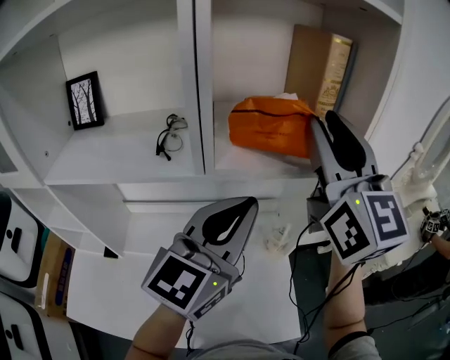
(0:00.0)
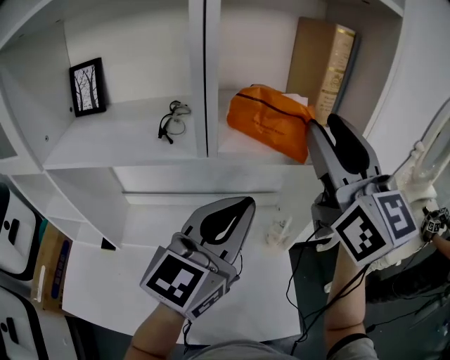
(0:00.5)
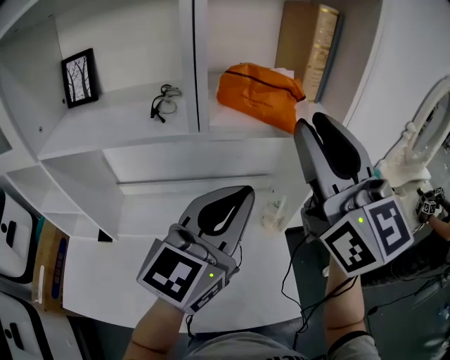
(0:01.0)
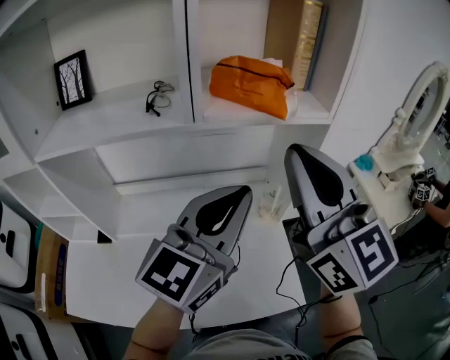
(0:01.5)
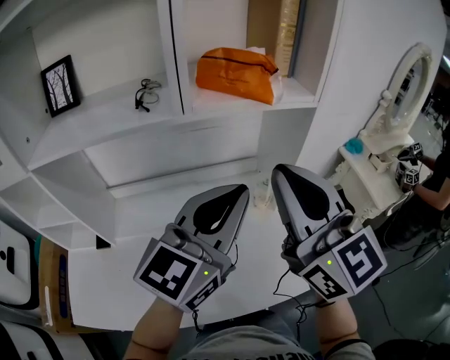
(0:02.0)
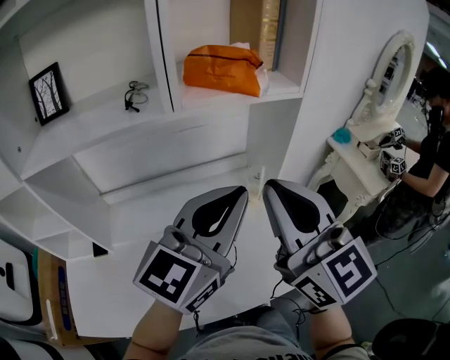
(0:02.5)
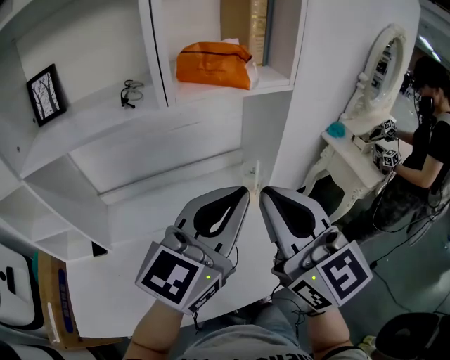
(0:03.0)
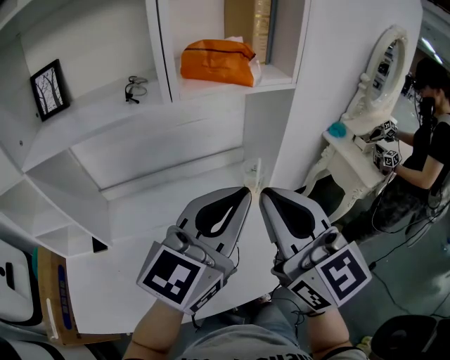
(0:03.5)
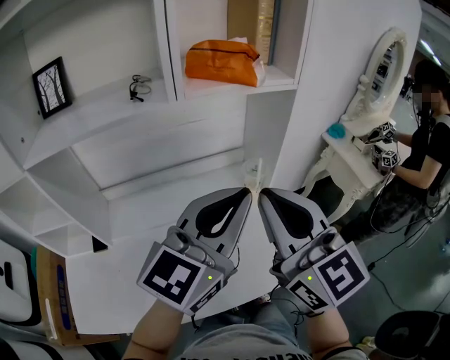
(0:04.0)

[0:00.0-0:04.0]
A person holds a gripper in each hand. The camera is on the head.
0:00.0 to 0:02.0: The right gripper is displaced backward and downward by approximately 20 cm, and closes; the left gripper shifts roughly 10 cm backward.
0:02.0 to 0:04.0: The grippers both shift backward by about 5 cm.

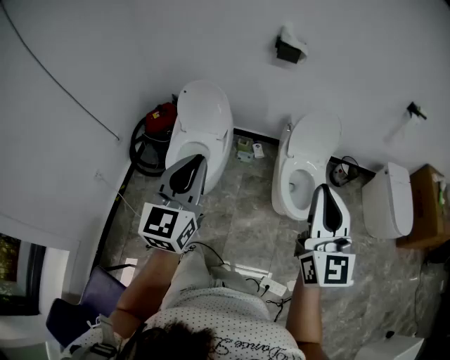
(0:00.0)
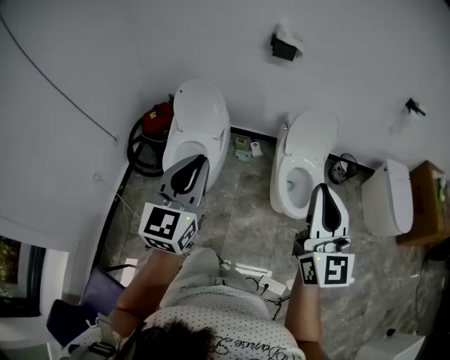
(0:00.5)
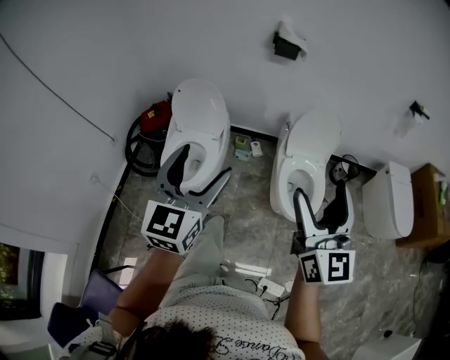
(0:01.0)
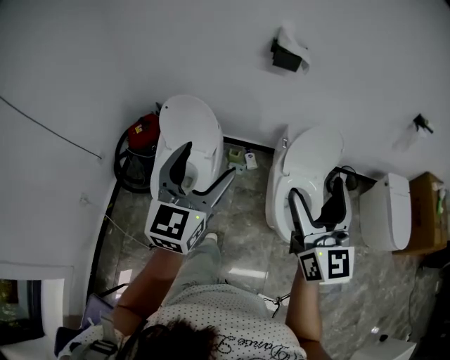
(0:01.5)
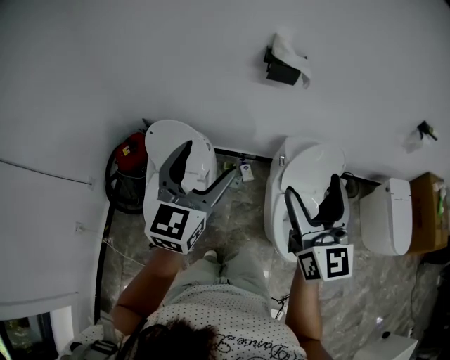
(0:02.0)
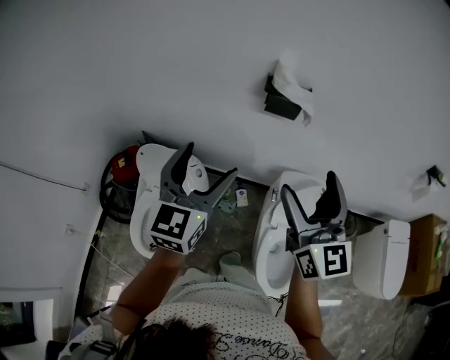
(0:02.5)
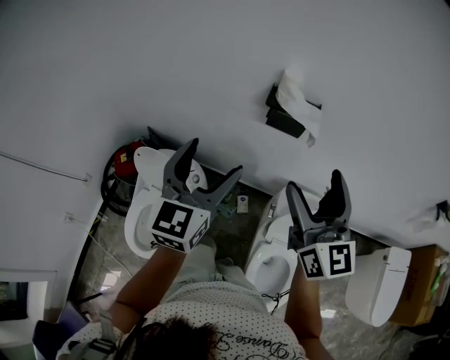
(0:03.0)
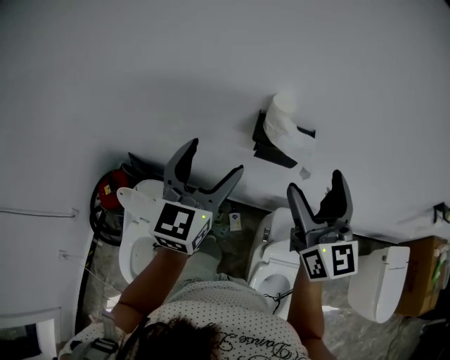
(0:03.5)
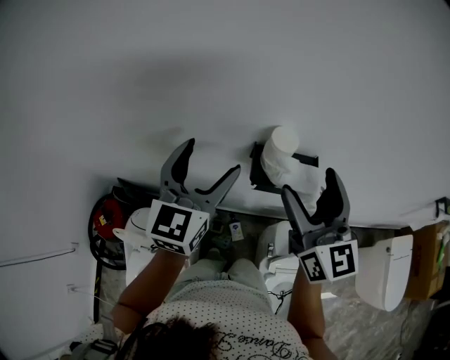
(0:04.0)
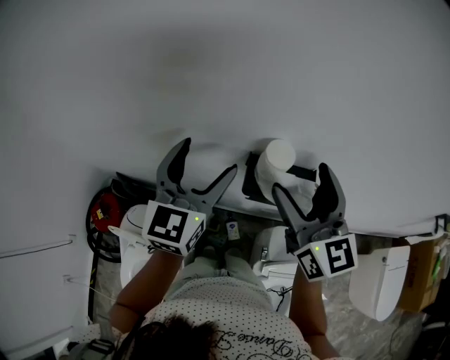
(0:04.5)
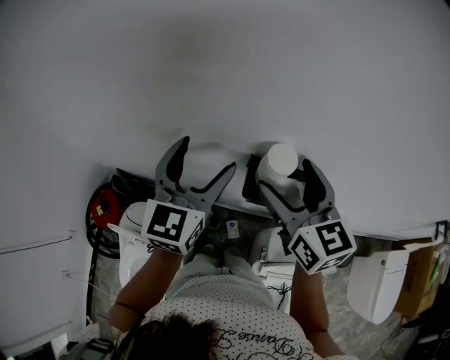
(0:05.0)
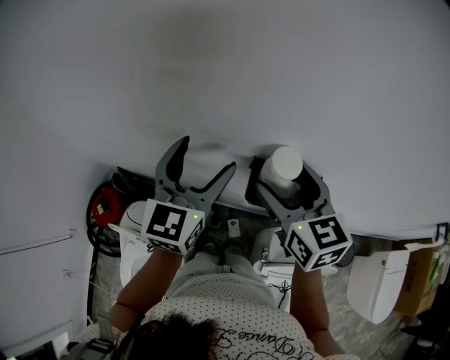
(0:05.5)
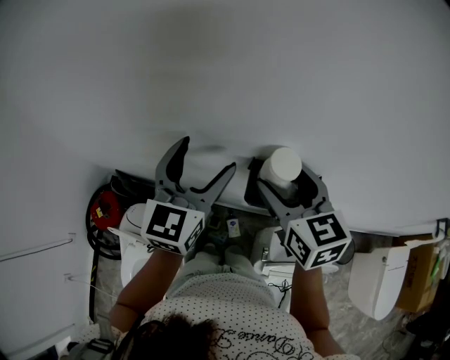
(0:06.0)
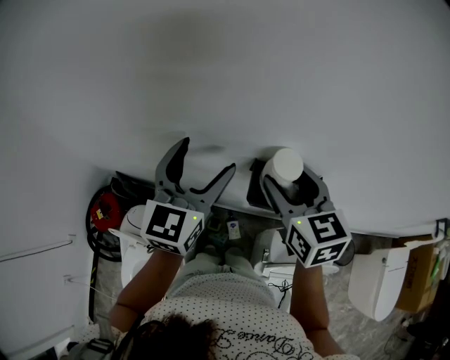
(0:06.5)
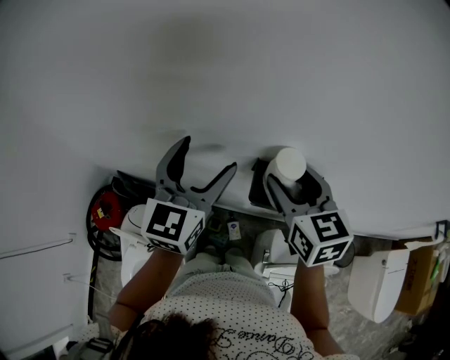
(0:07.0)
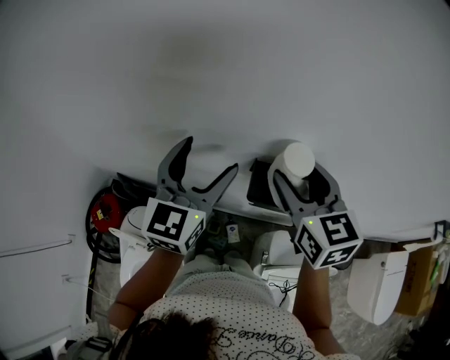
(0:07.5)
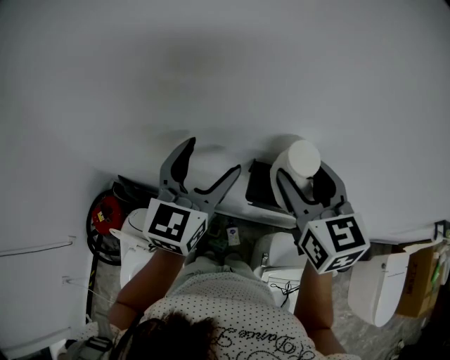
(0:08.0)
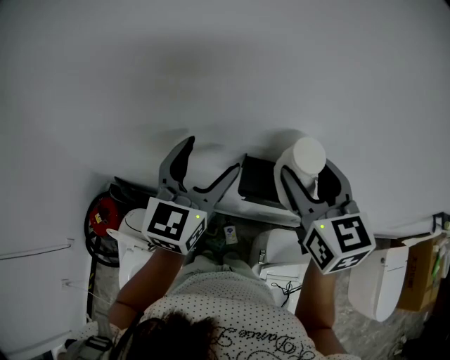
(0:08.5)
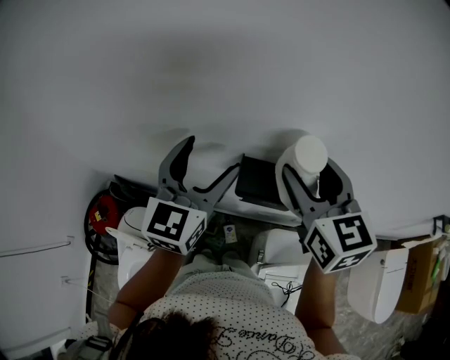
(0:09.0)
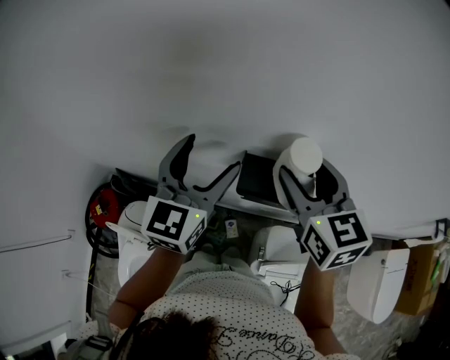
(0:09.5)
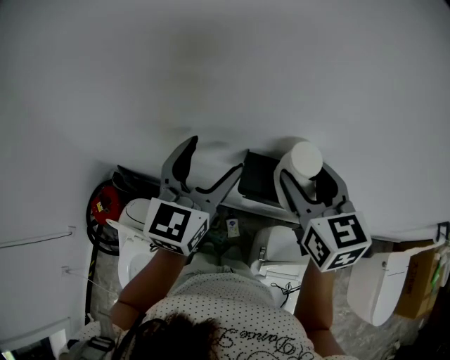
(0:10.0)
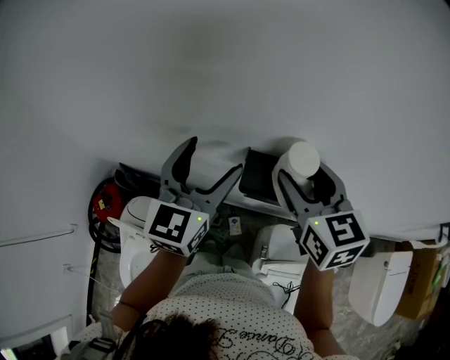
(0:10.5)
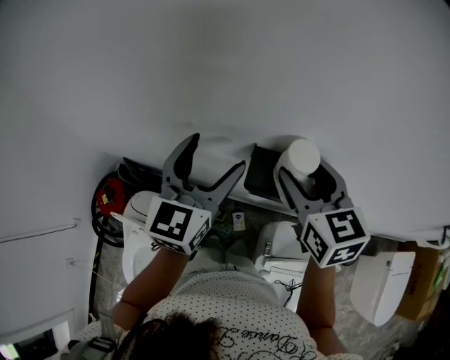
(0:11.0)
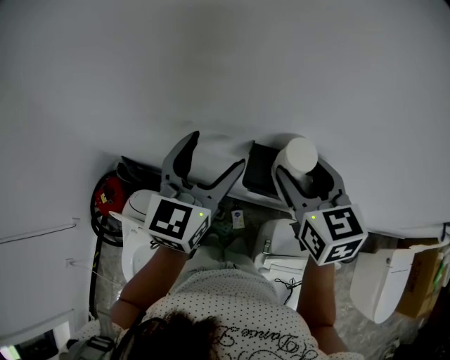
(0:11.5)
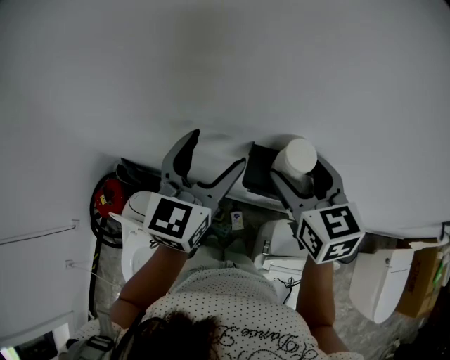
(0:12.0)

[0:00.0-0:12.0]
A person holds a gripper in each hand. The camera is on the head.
0:00.0 to 0:02.0: Both grippers move forward, about 35 cm. The right gripper opens up. The left gripper opens.
0:02.0 to 0:04.0: The pair of grippers is taken forward, about 50 cm.
0:04.0 to 0:06.0: The right gripper travels forward by roughly 5 cm, and swivels approximately 30 degrees.
0:06.0 to 0:08.0: The right gripper ends up roughly 5 cm from where it was.
0:08.0 to 0:12.0: The grippers move only a little.

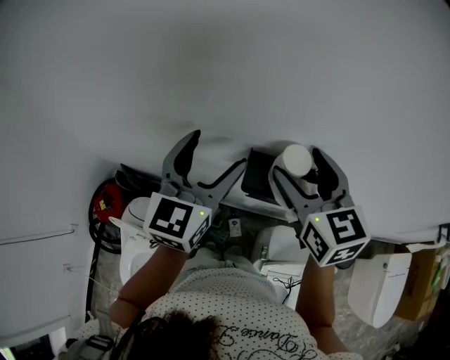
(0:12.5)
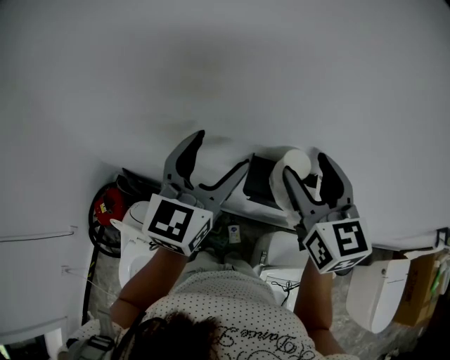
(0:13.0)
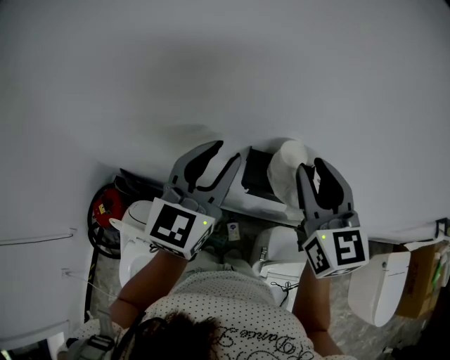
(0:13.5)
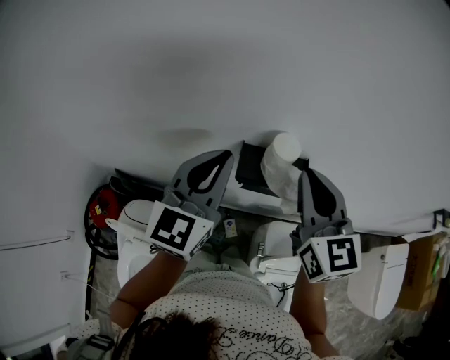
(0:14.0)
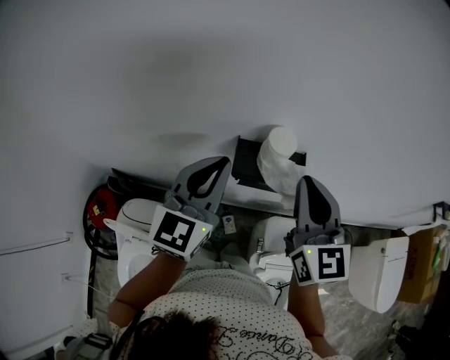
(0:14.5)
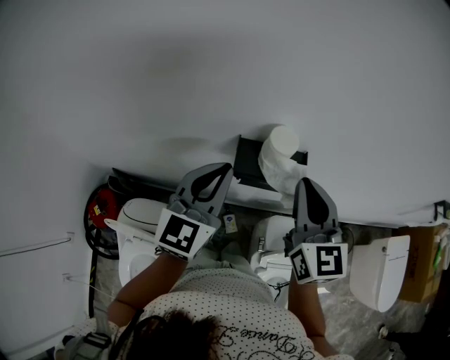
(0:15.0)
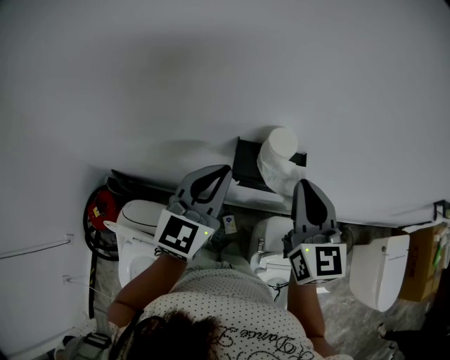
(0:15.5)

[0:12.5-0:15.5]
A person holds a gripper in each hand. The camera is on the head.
0:12.5 to 0:14.0: The right gripper shifts by about 5 cm, and closes its fingers; the left gripper closes.
0:14.0 to 0:15.5: The left gripper changes place by roughly 5 cm.

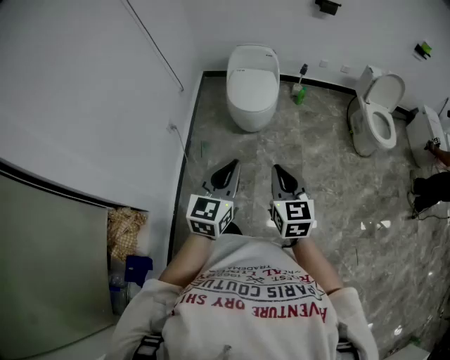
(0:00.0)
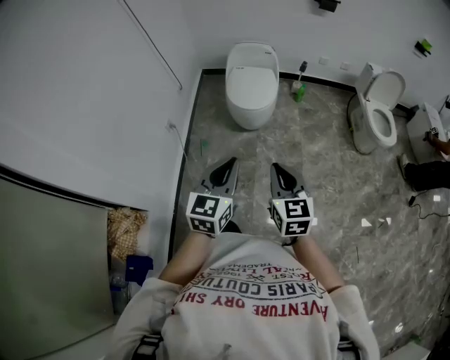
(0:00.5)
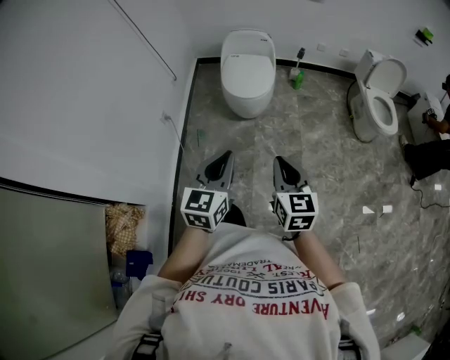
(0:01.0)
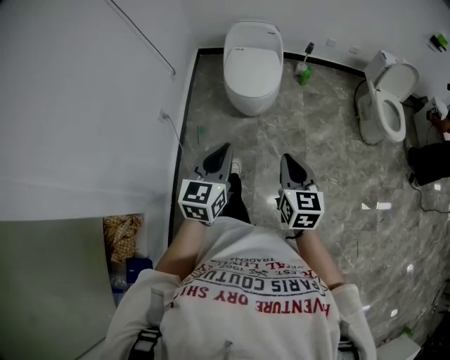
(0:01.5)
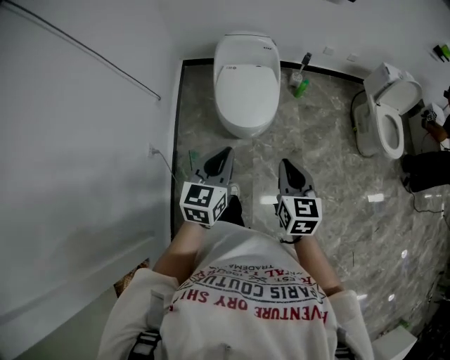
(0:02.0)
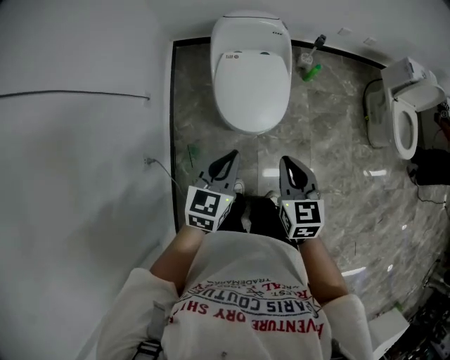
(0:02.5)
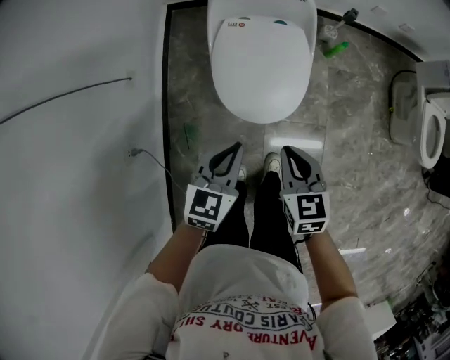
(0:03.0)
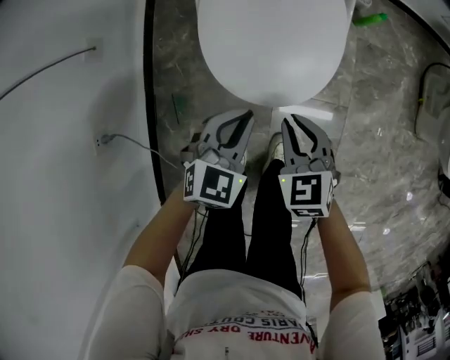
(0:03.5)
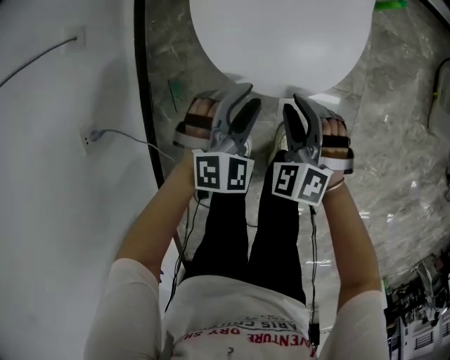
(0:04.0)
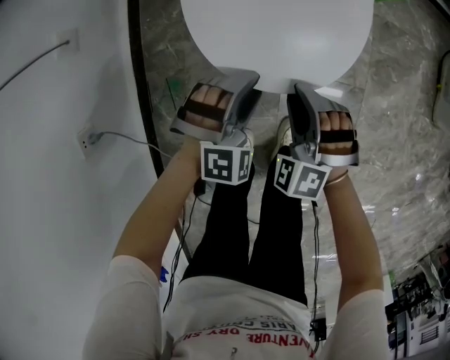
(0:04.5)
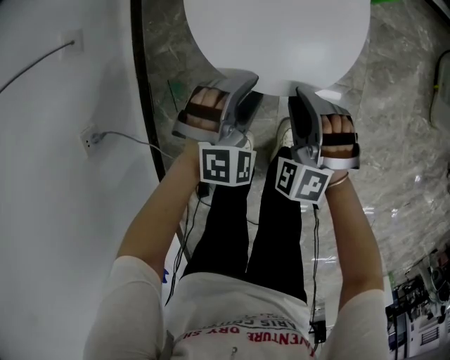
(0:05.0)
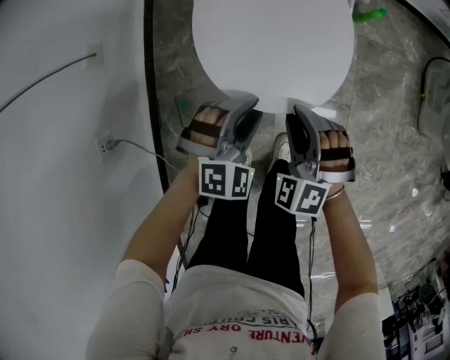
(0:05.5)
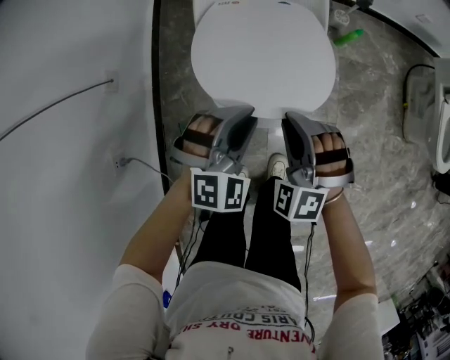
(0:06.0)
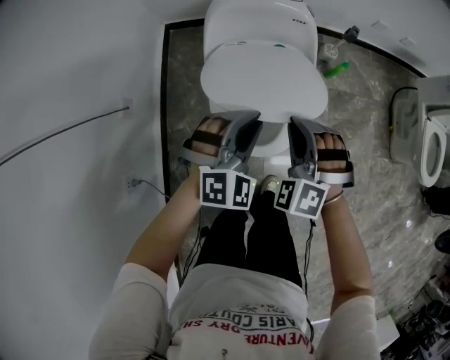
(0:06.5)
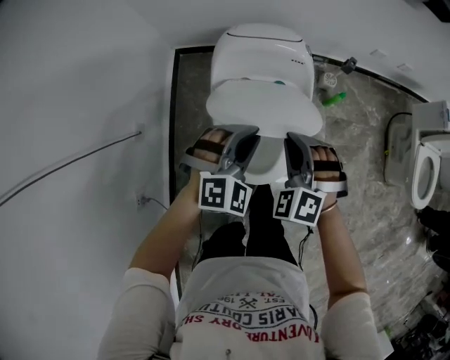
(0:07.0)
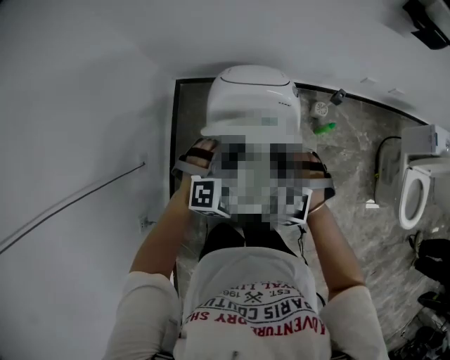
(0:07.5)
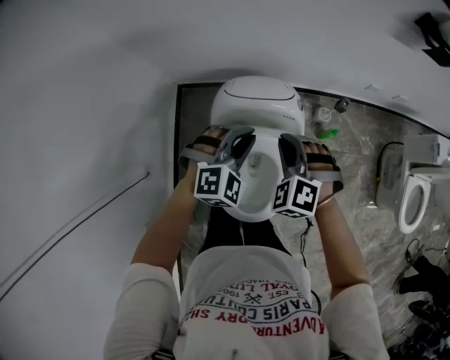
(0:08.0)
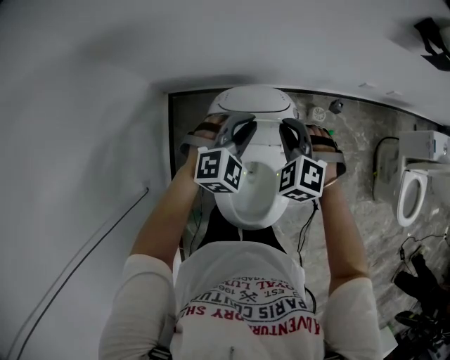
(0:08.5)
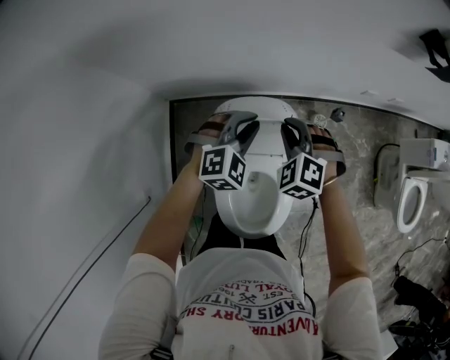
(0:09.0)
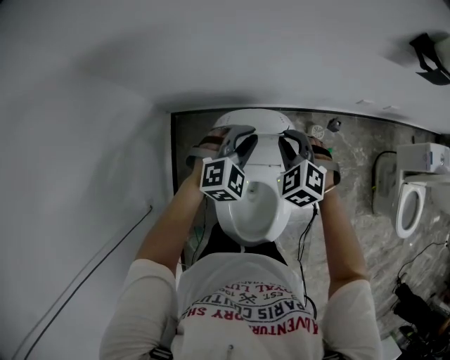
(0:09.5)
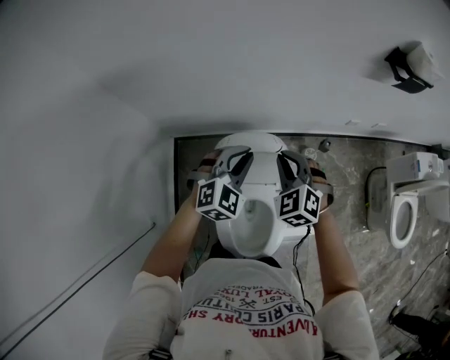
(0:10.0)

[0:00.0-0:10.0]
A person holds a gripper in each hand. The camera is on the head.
0:00.0 to 0:02.0: Both grippers move forward, roughly 35 cm.
0:02.0 to 0:04.0: The two grippers go some 60 cm downward and forward. The left gripper rolls clockwise, seen from behind, by approximately 50 degrees, and opens its fingers, while the right gripper rotates around the line of its fingers by some 60 degrees, counterclockwise from behind.
0:04.0 to 0:06.0: Both grippers move upward, some 20 cm. The right gripper swivels about 20 degrees.
0:06.0 to 0:08.0: Both grippers travel together forward and upward, some 40 cm.
0:08.0 to 0:10.0: The grippers both shift forward and upward by roughly 10 cm.
